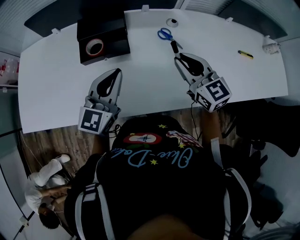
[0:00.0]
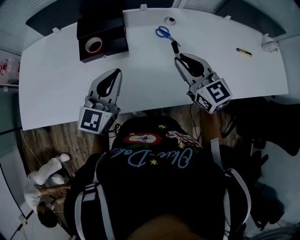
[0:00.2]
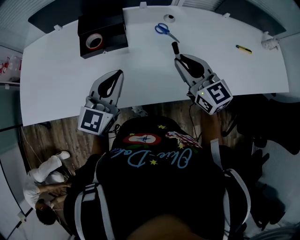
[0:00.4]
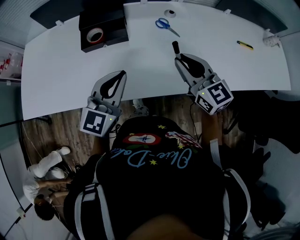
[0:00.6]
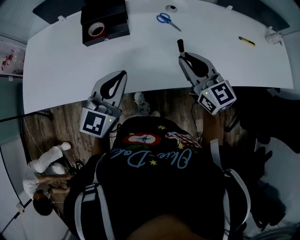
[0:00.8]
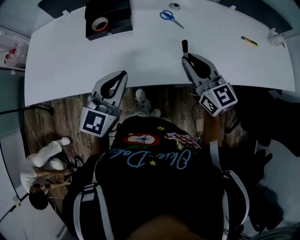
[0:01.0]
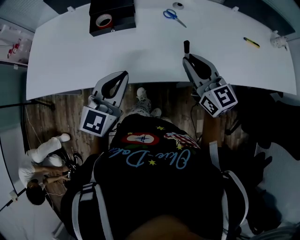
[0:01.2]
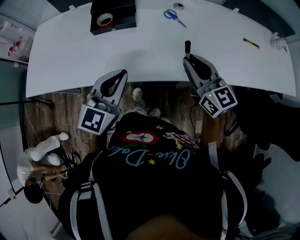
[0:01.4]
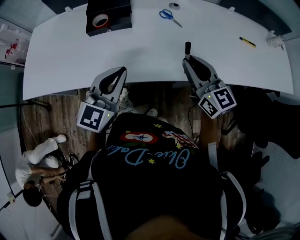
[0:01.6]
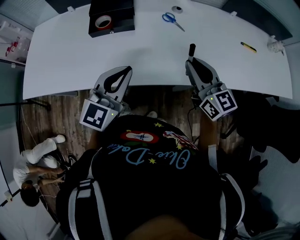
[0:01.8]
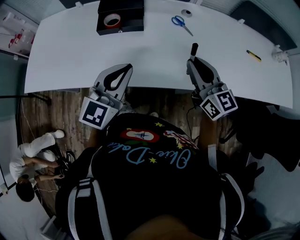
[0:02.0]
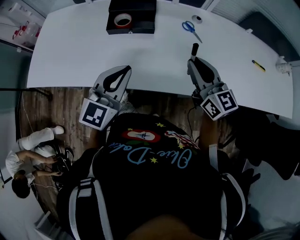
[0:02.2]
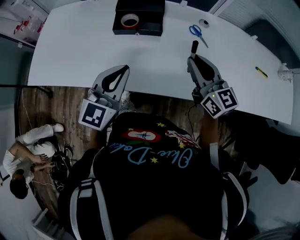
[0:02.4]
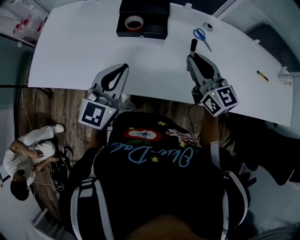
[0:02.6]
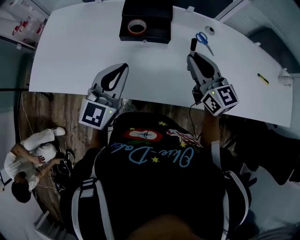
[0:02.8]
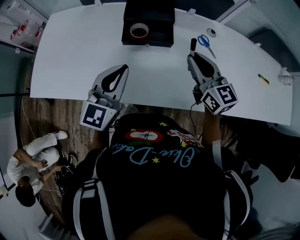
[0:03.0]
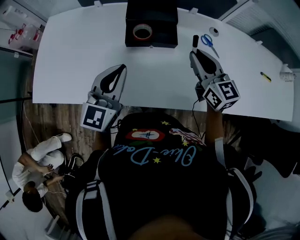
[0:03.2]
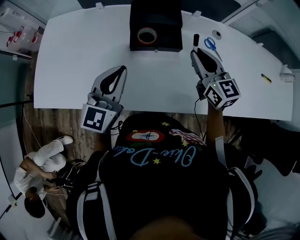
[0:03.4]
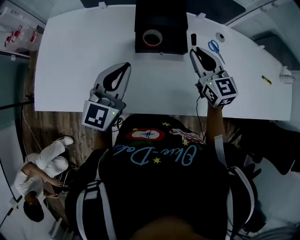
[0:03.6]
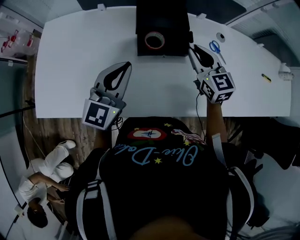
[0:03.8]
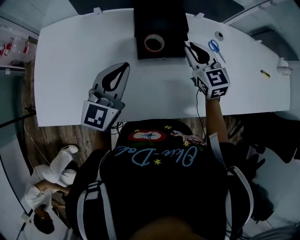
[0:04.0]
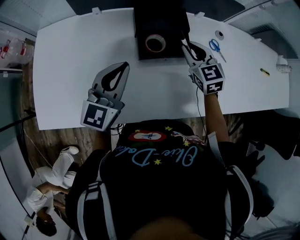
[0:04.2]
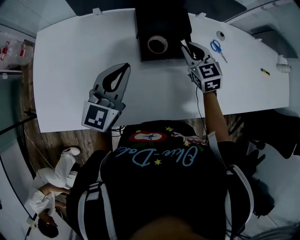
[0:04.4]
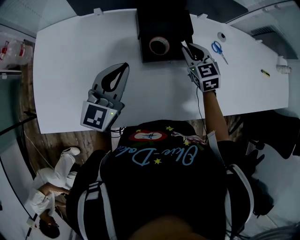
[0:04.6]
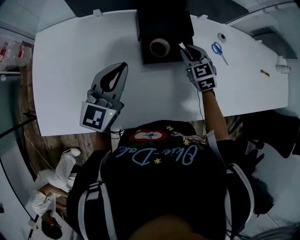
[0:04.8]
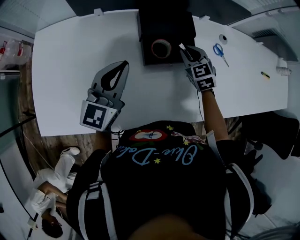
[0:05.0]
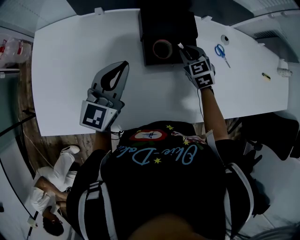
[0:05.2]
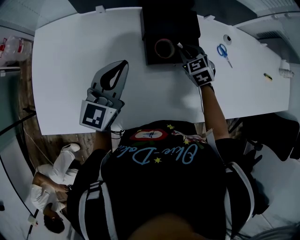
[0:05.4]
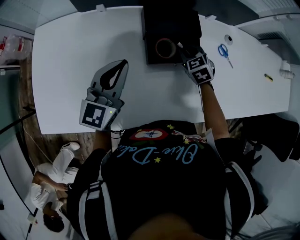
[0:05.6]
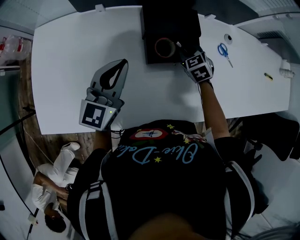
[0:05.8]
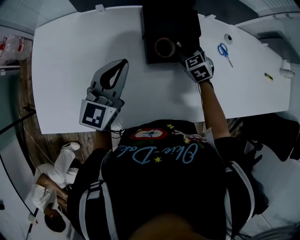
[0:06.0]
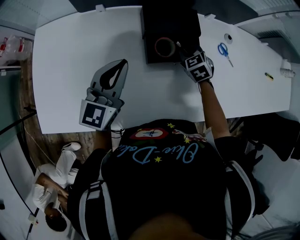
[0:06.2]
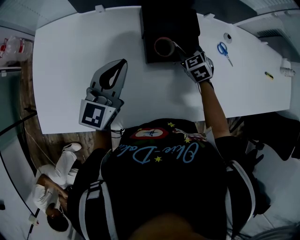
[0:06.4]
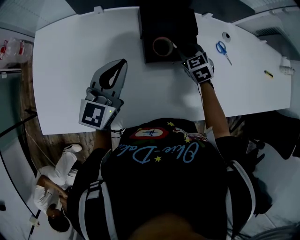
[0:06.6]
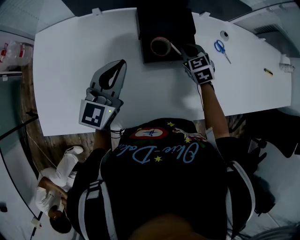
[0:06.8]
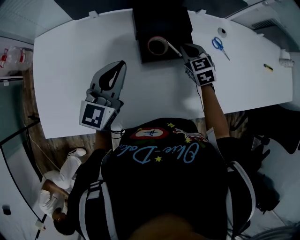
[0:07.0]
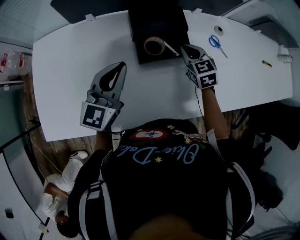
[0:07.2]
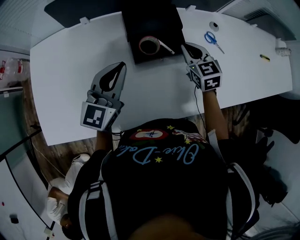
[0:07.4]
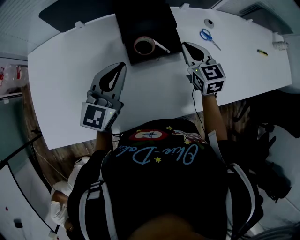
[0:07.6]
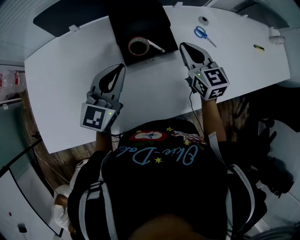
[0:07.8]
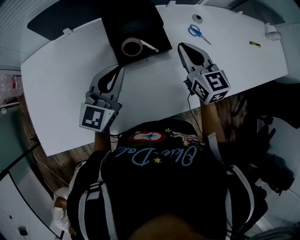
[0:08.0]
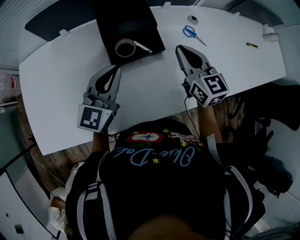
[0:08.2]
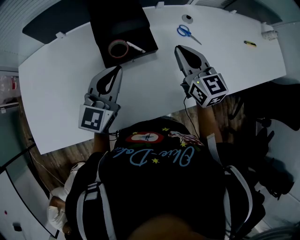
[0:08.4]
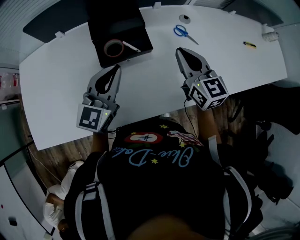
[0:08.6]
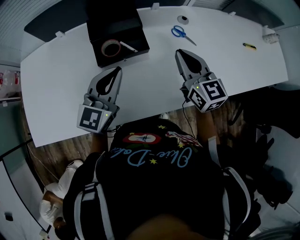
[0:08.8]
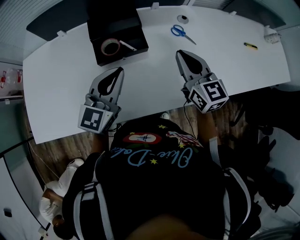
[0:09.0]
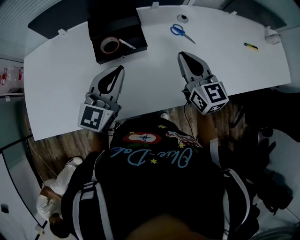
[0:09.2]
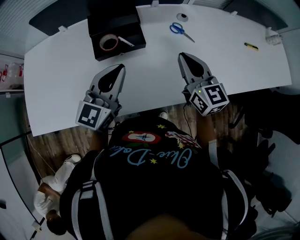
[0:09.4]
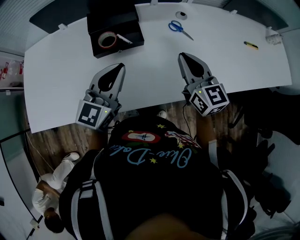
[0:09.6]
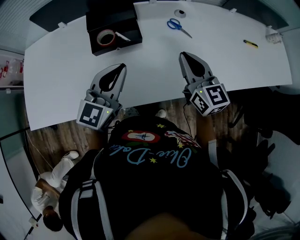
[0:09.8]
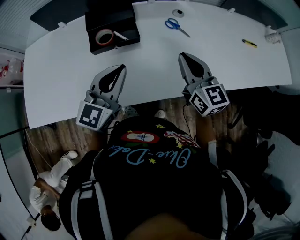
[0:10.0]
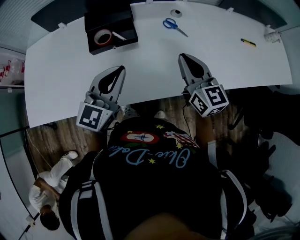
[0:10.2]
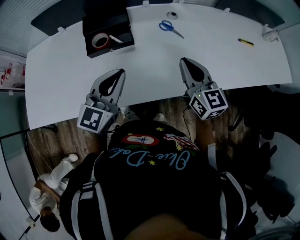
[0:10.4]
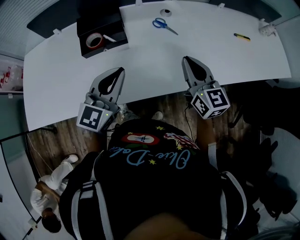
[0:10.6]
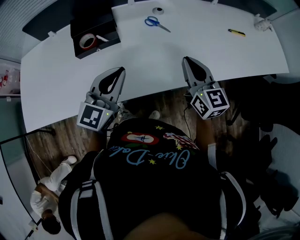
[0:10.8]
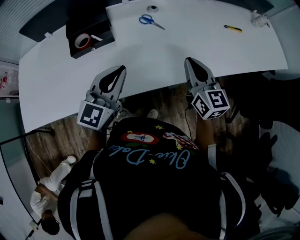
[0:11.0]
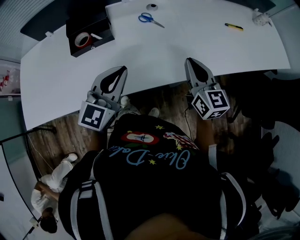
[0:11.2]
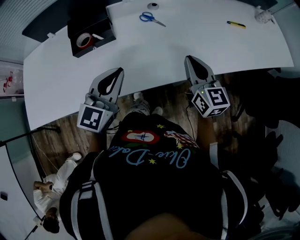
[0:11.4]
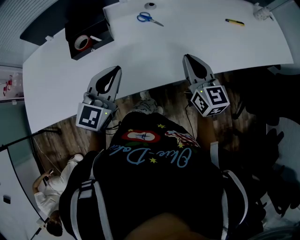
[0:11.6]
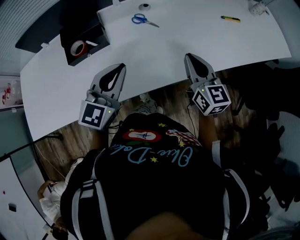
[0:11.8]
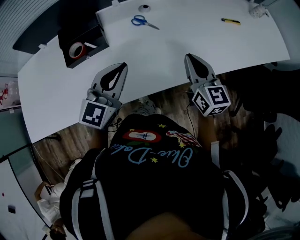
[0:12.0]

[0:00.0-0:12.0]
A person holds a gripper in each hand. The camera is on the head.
0:00.0 to 0:01.6: The grippers both shift backward by some 15 cm.
0:01.6 to 0:03.0: The grippers both shift to the left and forward by roughly 20 cm.
0:03.0 to 0:04.4: The right gripper goes approximately 20 cm forward, to the left and downward, and changes its angle by some 30 degrees; the left gripper is displaced to the left and forward by roughly 15 cm.
0:04.4 to 0:06.0: The right gripper is displaced downward by roughly 10 cm, and changes its angle by about 20 degrees.
0:06.0 to 0:07.6: The left gripper heads to the right, covering roughly 5 cm. Meanwhile the right gripper shifts roughly 15 cm upward and to the right, and changes its angle by some 30 degrees.
0:07.6 to 0:09.0: The right gripper heads to the right, upward and backward, covering some 15 cm, while the left gripper is displaced to the right by some 15 cm.
0:09.0 to 0:10.4: The two grippers go approximately 10 cm to the right and backward.
0:10.4 to 0:12.0: Both grippers travel together to the right, some 10 cm.

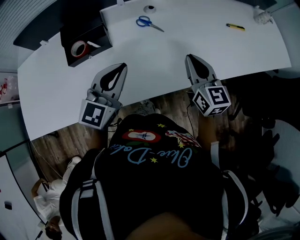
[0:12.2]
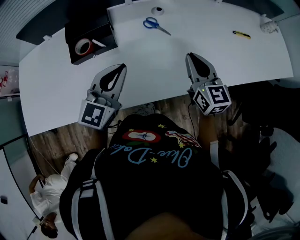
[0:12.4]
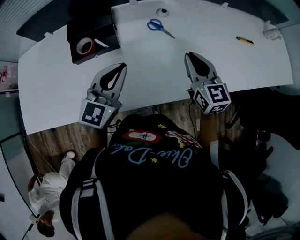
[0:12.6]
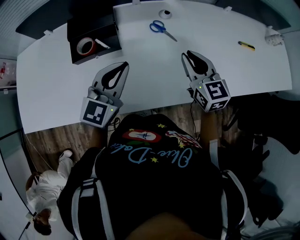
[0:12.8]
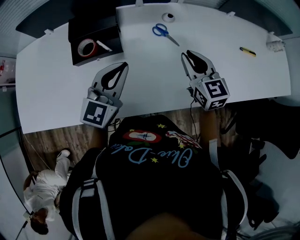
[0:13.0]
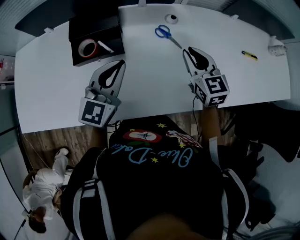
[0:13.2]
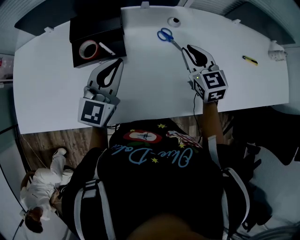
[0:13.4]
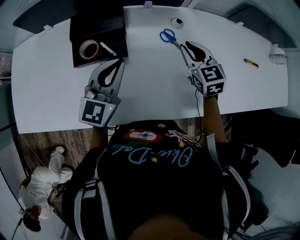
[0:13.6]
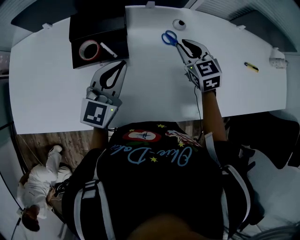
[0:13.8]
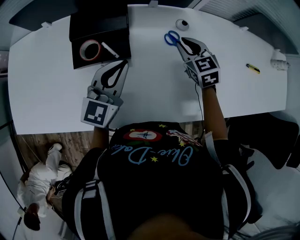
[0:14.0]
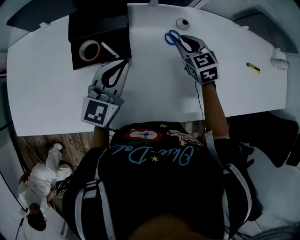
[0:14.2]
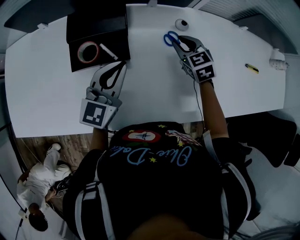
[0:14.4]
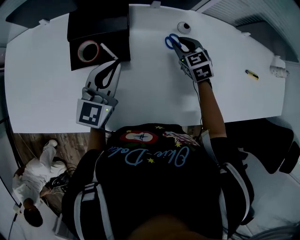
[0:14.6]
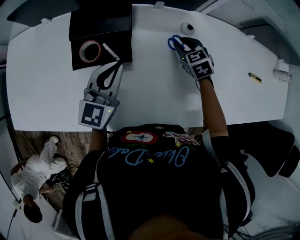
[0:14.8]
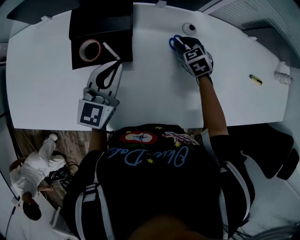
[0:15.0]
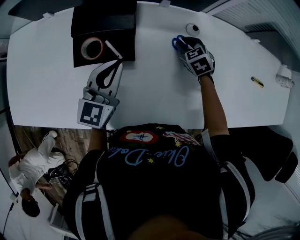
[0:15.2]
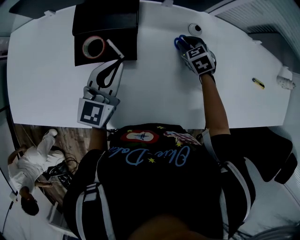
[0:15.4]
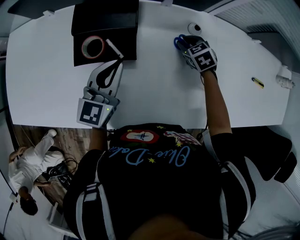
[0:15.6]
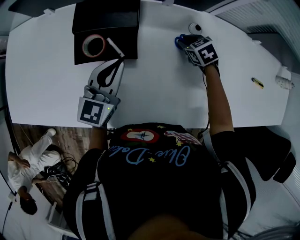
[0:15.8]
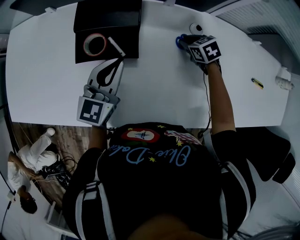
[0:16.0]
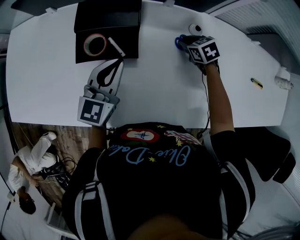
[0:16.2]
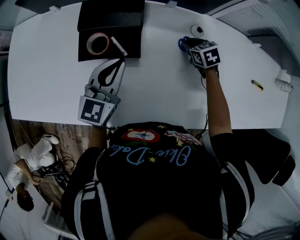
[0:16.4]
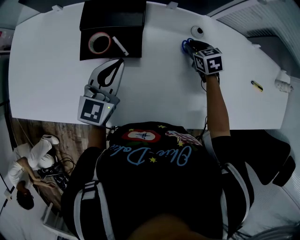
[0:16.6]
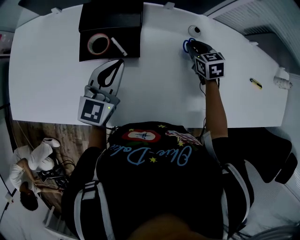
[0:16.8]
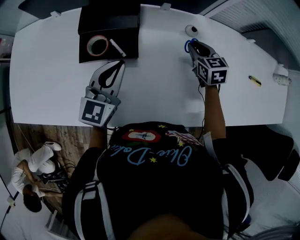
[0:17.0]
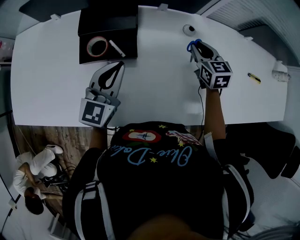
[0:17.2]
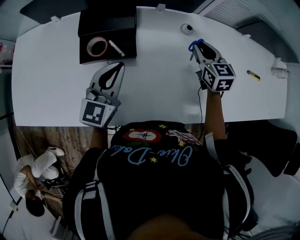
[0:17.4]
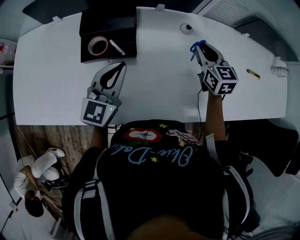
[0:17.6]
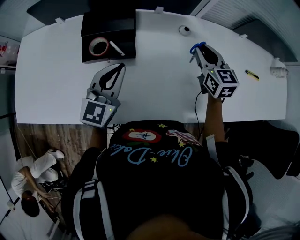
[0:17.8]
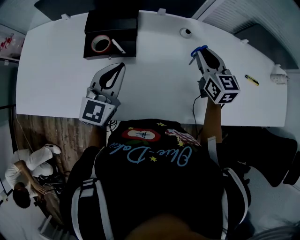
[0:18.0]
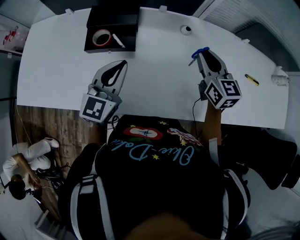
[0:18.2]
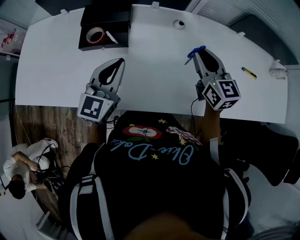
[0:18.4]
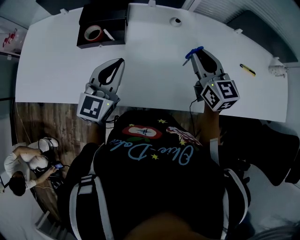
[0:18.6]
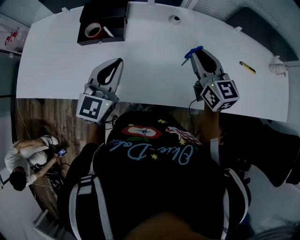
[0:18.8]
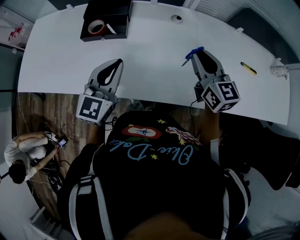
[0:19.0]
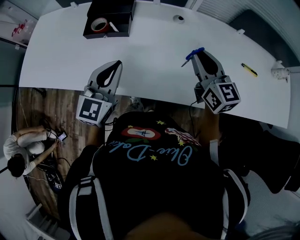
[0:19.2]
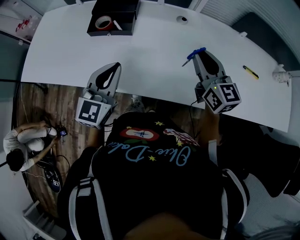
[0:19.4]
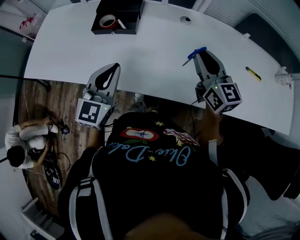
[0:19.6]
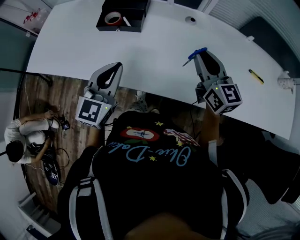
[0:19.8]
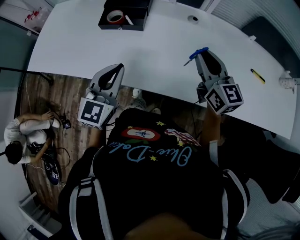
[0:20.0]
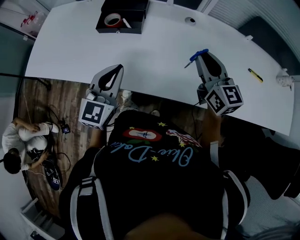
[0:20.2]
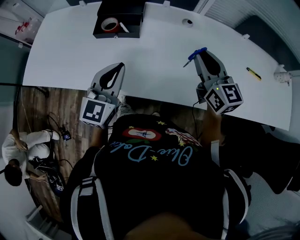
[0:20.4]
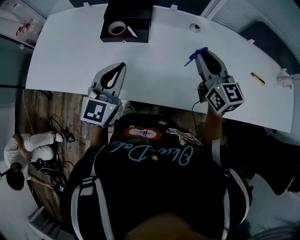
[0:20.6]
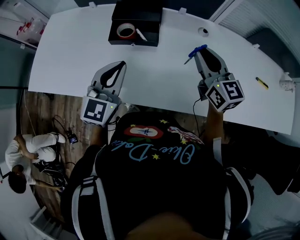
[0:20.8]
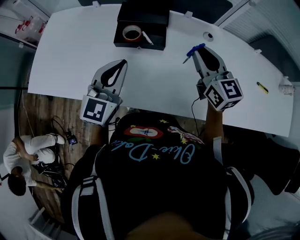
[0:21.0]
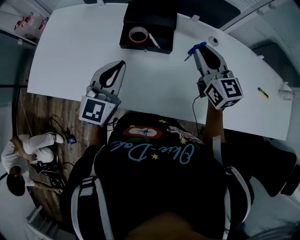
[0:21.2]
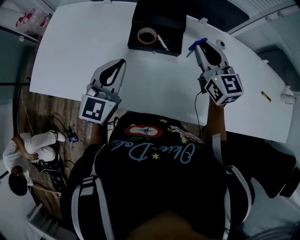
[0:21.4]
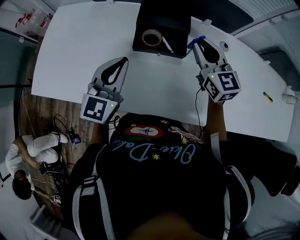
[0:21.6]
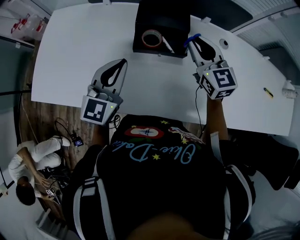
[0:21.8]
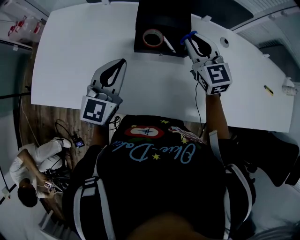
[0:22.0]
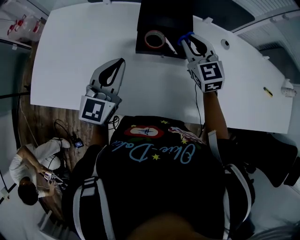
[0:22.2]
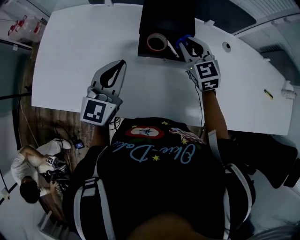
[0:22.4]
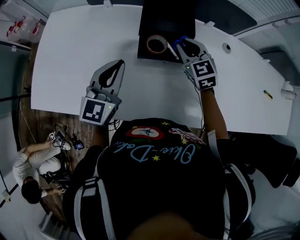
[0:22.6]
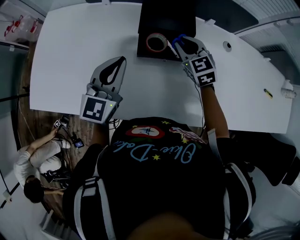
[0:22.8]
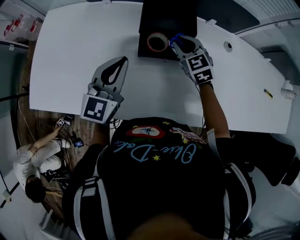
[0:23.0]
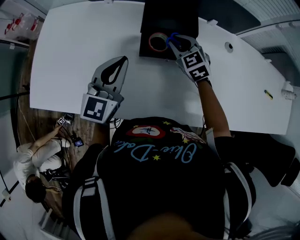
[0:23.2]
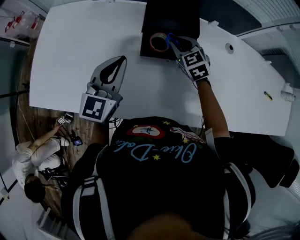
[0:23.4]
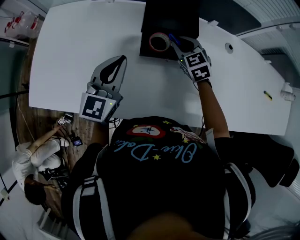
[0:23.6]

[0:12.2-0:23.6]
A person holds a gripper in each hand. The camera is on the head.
0:12.2 to 0:13.6: Both grippers move forward and to the left, roughly 15 cm. The right gripper swivels about 30 degrees.
0:13.6 to 0:15.0: The right gripper travels downward and forward by some 15 cm, and turns by roughly 30 degrees; the left gripper ends up approximately 5 cm from where it was.
0:15.0 to 0:16.4: The grippers stay close to where they were, moving slightly.
0:16.4 to 0:17.8: The left gripper ends up approximately 5 cm from where it was; the right gripper shifts approximately 20 cm upward and backward, and angles its fingers upward, by roughly 40 degrees.
0:17.8 to 0:19.4: The right gripper shifts about 15 cm backward and upward. The left gripper moves backward, approximately 15 cm.
0:19.4 to 0:20.8: The two grippers go roughly 15 cm to the left and forward.
0:20.8 to 0:22.2: The left gripper shifts about 15 cm to the left and forward; the right gripper moves to the left, forward and downward, about 25 cm, and swivels about 30 degrees.
0:22.2 to 0:23.6: The right gripper is displaced downward by some 10 cm.
